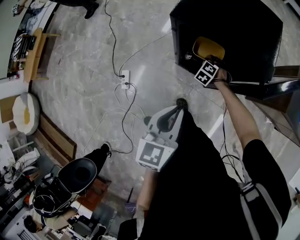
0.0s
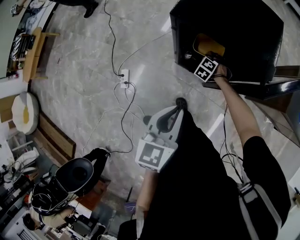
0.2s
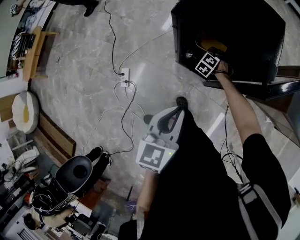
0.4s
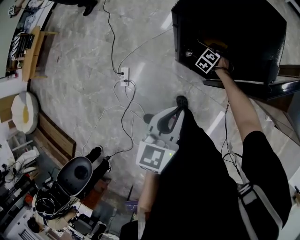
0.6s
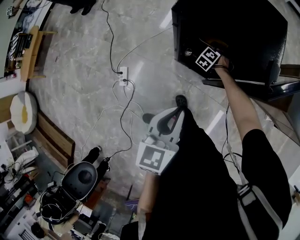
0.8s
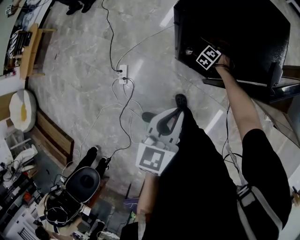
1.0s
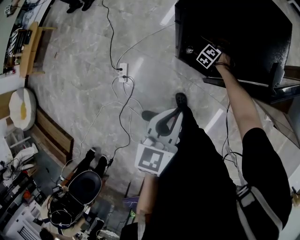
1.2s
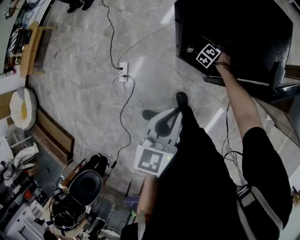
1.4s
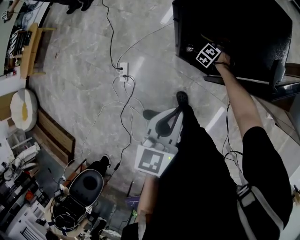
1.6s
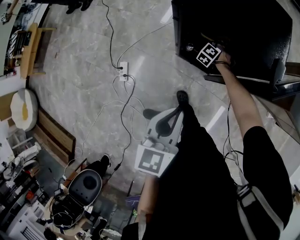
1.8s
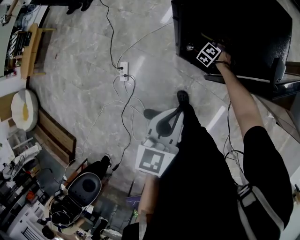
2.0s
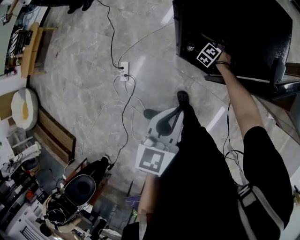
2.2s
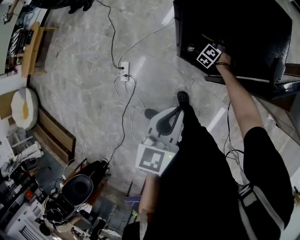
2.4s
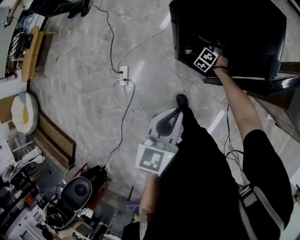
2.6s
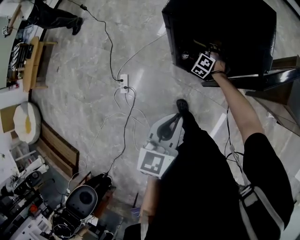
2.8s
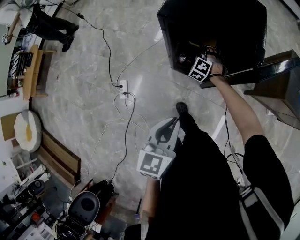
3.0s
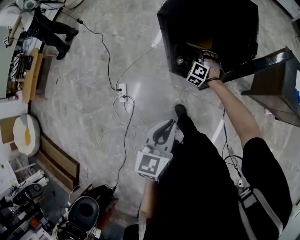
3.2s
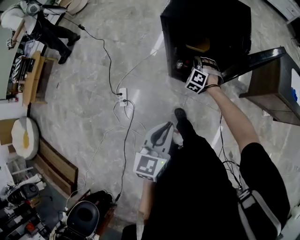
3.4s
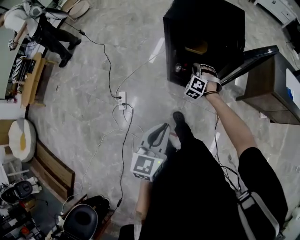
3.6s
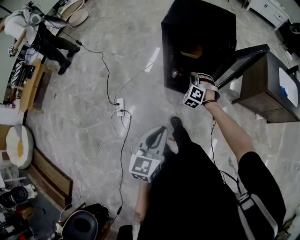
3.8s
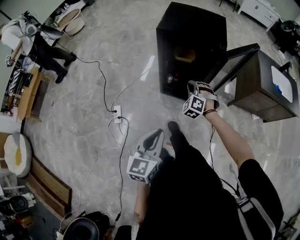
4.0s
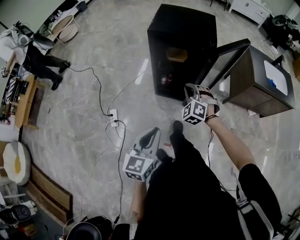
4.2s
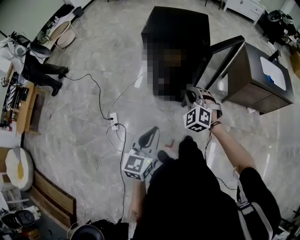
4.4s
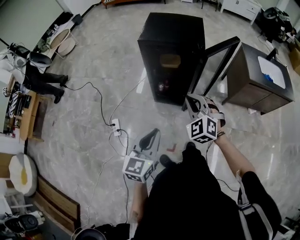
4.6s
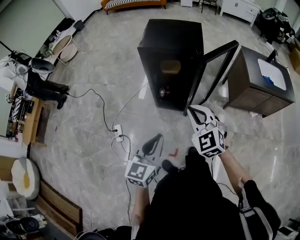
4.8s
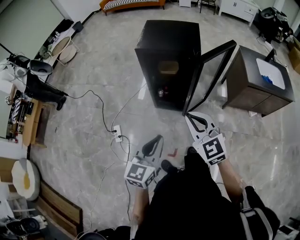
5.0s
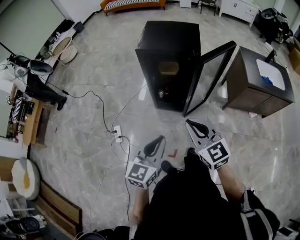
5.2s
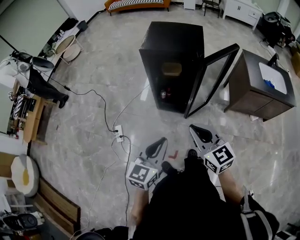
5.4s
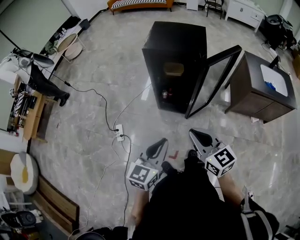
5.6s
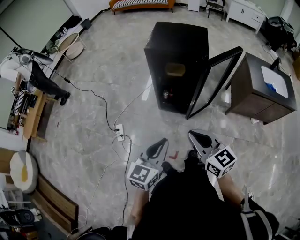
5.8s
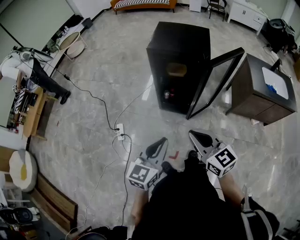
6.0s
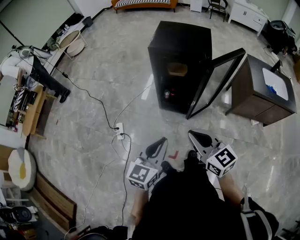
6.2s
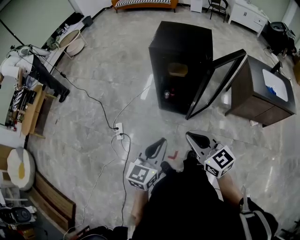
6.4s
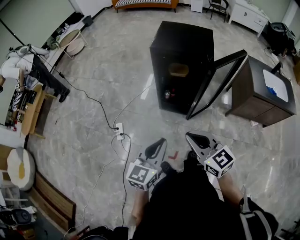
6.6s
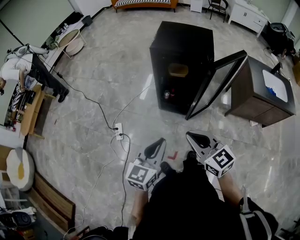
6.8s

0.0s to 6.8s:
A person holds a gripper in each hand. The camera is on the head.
0.0s to 1.4s: The right gripper is displaced forward by some 10 cm.
1.4s to 2.8s: The right gripper shifts about 5 cm upward.
2.8s to 4.0s: The right gripper goes roughly 35 cm backward and upward, and closes. The left gripper travels backward by roughly 25 cm.
4.0s to 5.4s: The left gripper is displaced to the right and upward by approximately 10 cm, while the right gripper shifts approximately 30 cm backward and upward, and twists about 60 degrees clockwise, seen from behind.
5.4s to 6.8s: The two grippers go some 5 cm to the left.

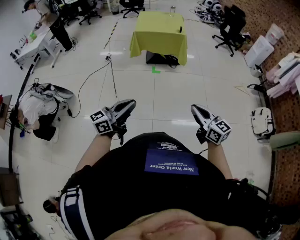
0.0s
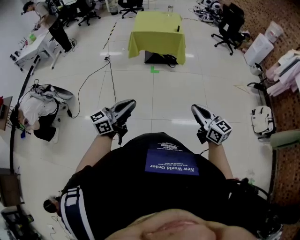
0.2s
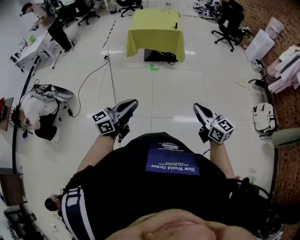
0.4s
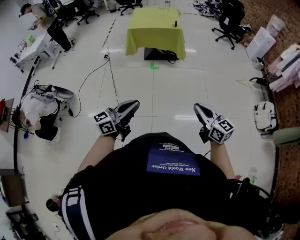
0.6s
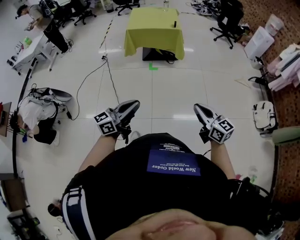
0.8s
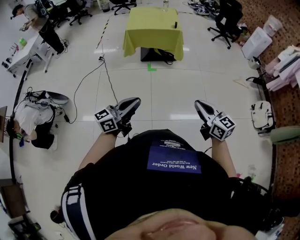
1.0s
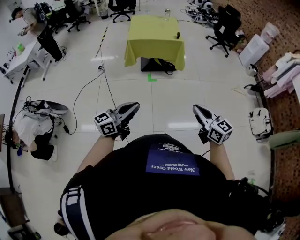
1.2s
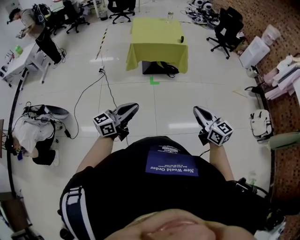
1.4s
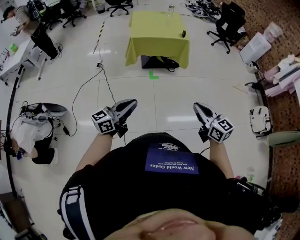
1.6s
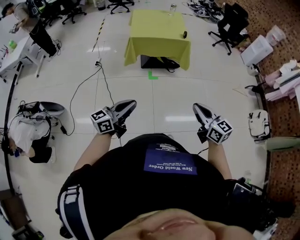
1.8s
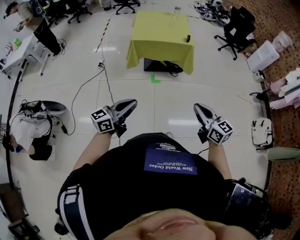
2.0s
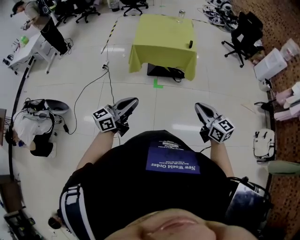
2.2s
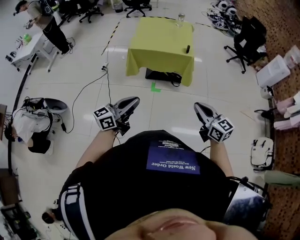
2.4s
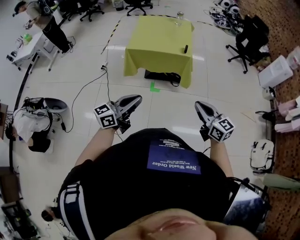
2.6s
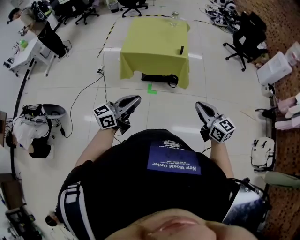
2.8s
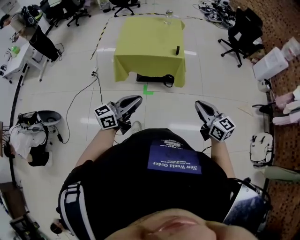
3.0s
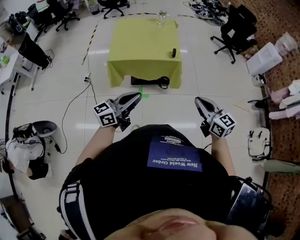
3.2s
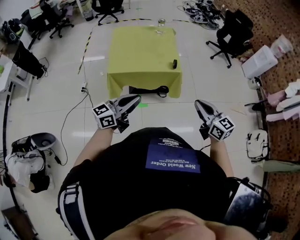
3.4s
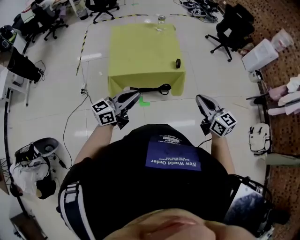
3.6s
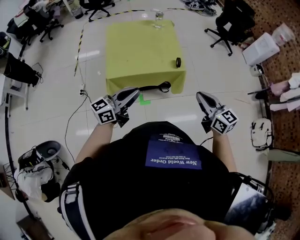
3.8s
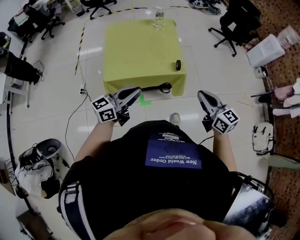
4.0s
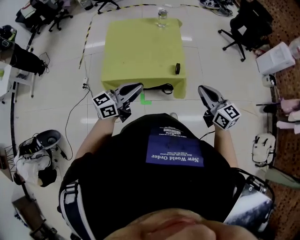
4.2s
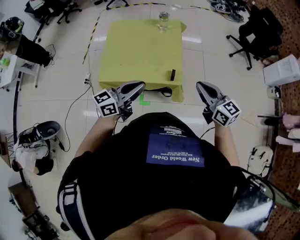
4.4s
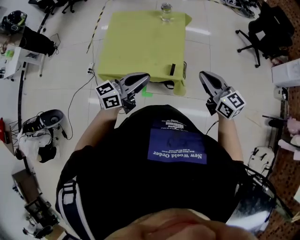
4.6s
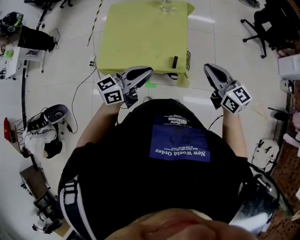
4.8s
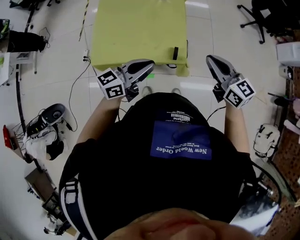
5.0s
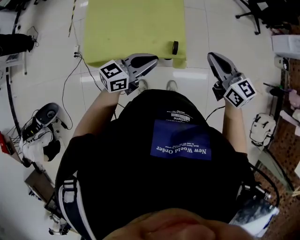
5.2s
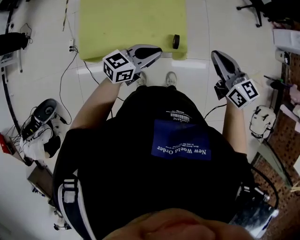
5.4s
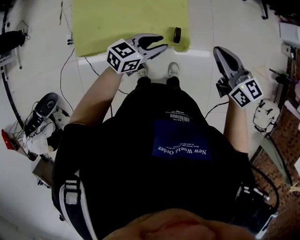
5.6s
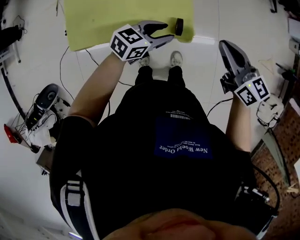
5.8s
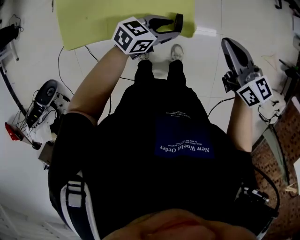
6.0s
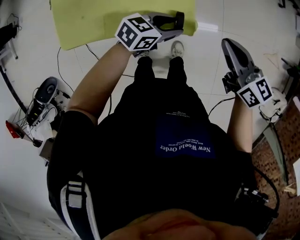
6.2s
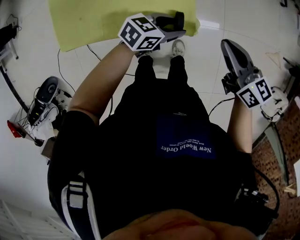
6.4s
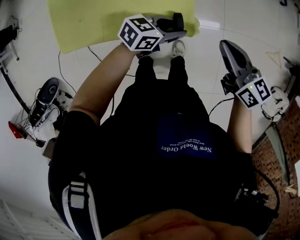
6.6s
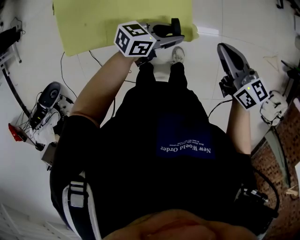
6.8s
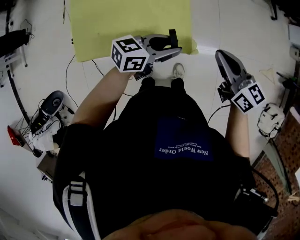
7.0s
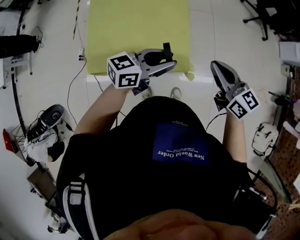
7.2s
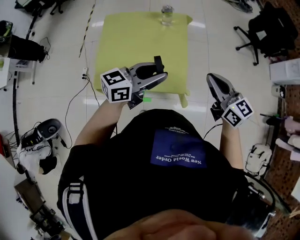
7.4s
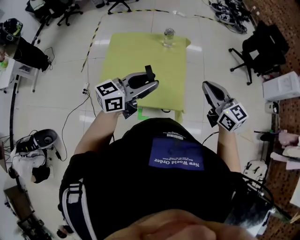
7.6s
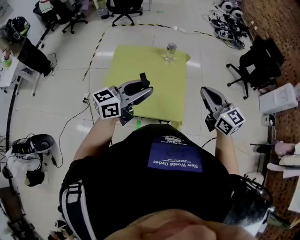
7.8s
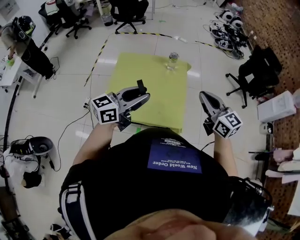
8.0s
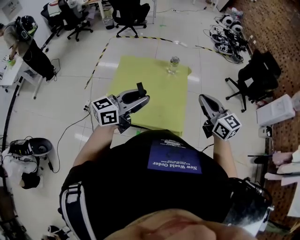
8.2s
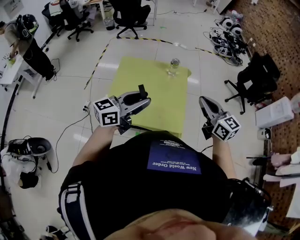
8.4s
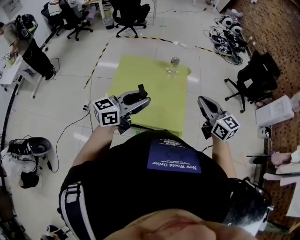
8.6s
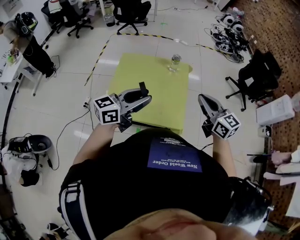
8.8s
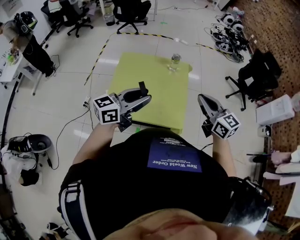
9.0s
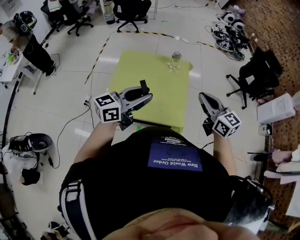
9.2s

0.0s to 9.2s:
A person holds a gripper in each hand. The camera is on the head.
0.0s to 1.6s: Both grippers travel together forward and to the left, about 25 cm.
1.6s to 3.0s: Both grippers move forward and to the right, roughly 40 cm.
3.0s to 4.6s: The two grippers travel together, forward, about 50 cm.
4.6s to 6.2s: The right gripper goes roughly 20 cm downward and forward, and rotates approximately 20 degrees. The left gripper heads downward and forward, covering about 30 cm, angles its fingers downward, by roughly 30 degrees, and opens up.
6.2s to 7.6s: The left gripper moves upward, some 35 cm, and changes its angle by about 40 degrees. The right gripper is displaced upward by some 20 cm, and changes its angle by some 30 degrees.
7.6s to 9.2s: The right gripper ends up roughly 5 cm from where it was. Meanwhile the left gripper heads to the left, covering some 5 cm.

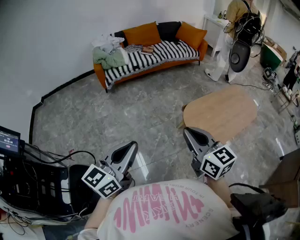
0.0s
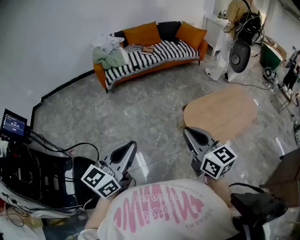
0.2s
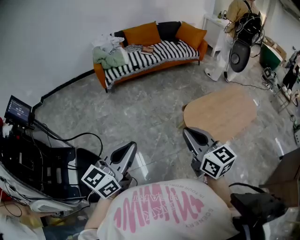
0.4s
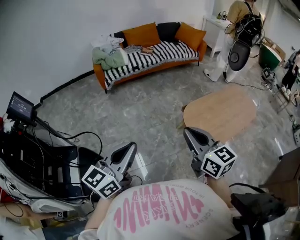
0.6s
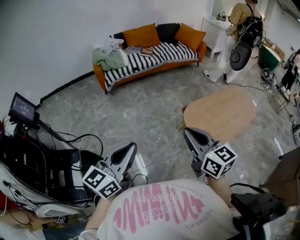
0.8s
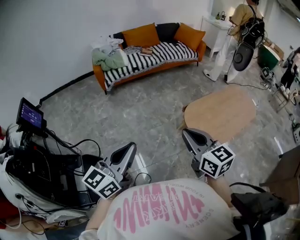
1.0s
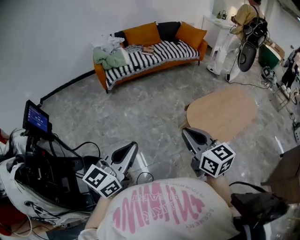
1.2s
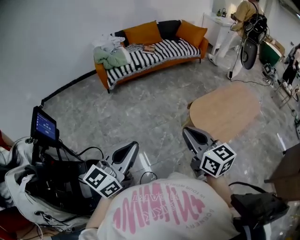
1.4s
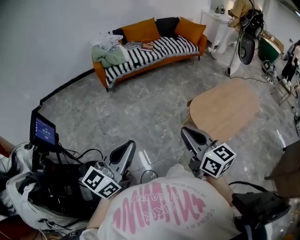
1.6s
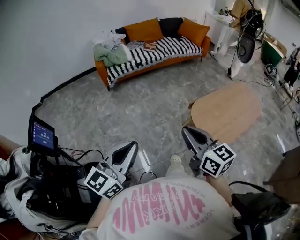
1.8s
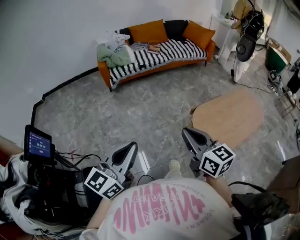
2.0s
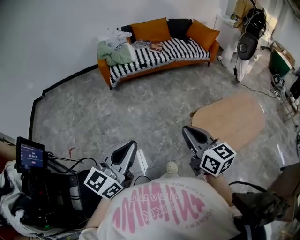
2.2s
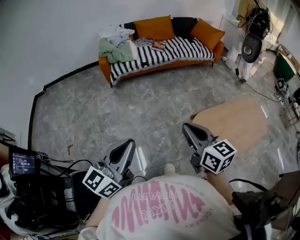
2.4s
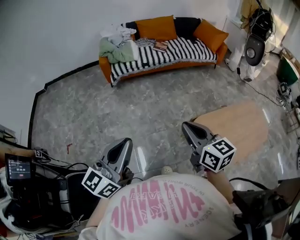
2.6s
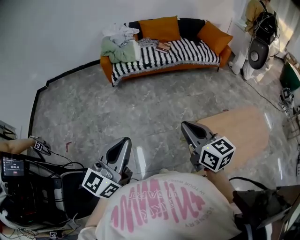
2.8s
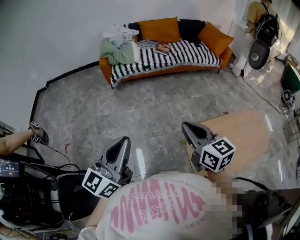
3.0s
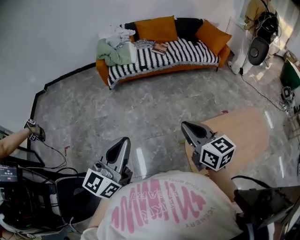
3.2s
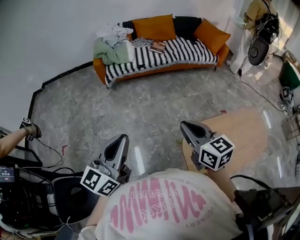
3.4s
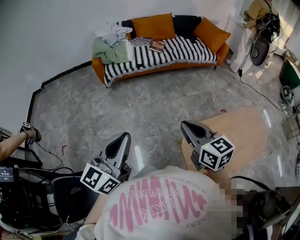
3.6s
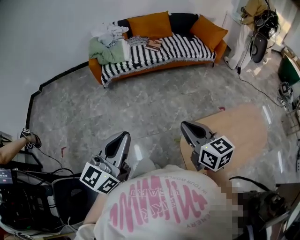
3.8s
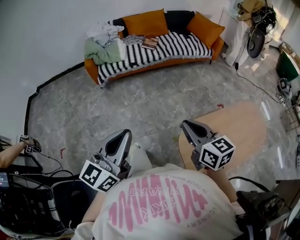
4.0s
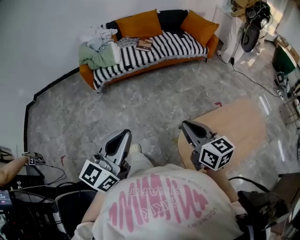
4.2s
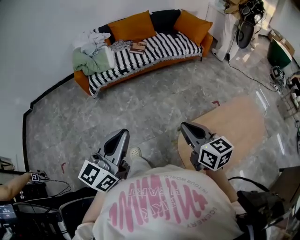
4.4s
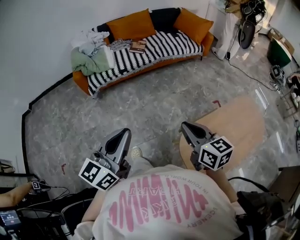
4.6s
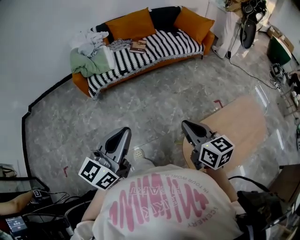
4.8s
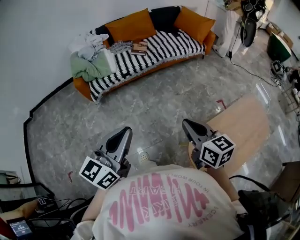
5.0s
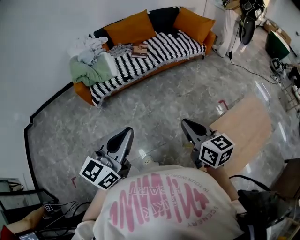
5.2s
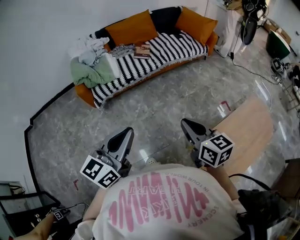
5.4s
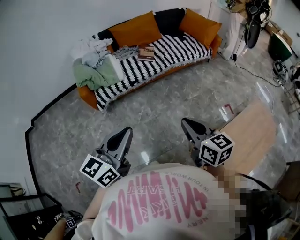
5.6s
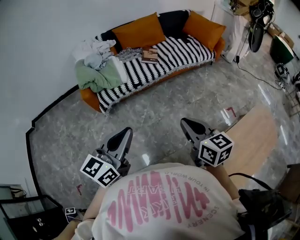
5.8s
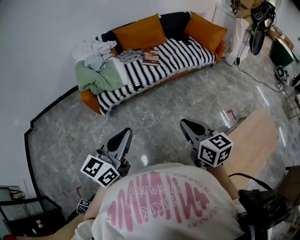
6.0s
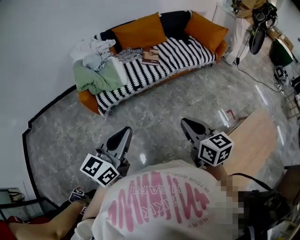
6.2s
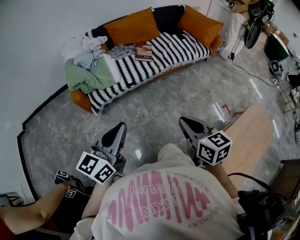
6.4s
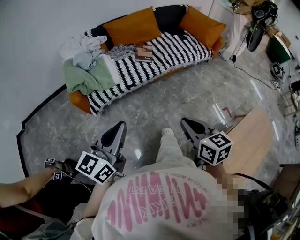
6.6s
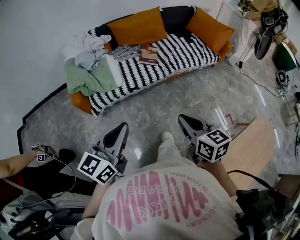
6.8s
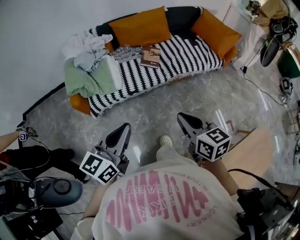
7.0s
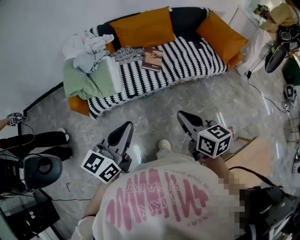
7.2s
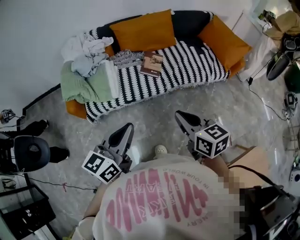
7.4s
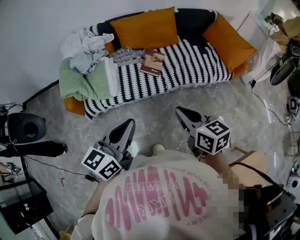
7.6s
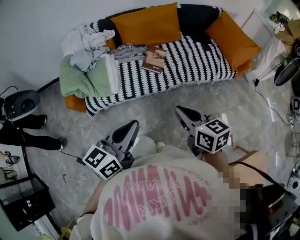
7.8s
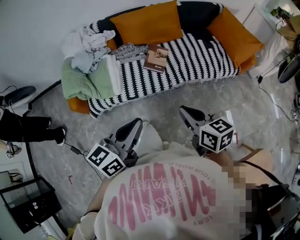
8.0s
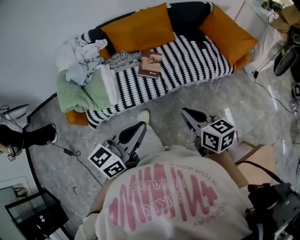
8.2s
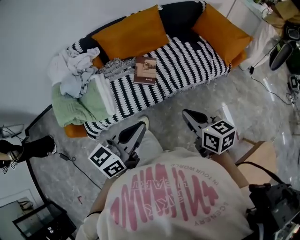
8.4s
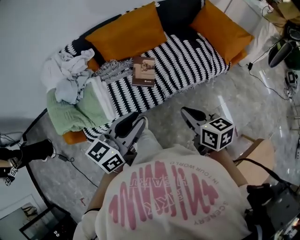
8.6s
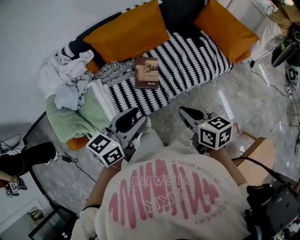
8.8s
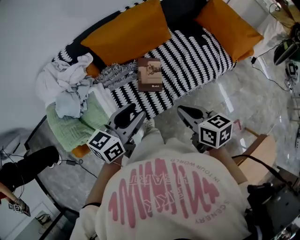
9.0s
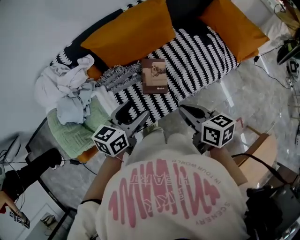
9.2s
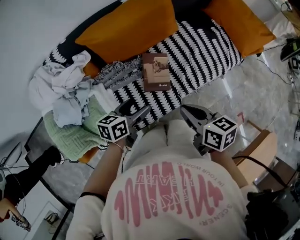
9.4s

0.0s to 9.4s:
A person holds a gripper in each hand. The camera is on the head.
0.0s to 1.6s: The two grippers go some 10 cm to the left.
1.6s to 3.2s: The grippers both shift forward and to the right by about 25 cm.
3.2s to 4.8s: The right gripper goes roughly 10 cm forward and to the right. The left gripper heads forward, covering roughly 15 cm.
4.8s to 6.2s: The two grippers go roughly 25 cm forward and to the left.
6.2s to 7.8s: The right gripper is displaced forward by about 30 cm; the left gripper moves forward and to the right, approximately 30 cm.
7.8s to 9.4s: The right gripper shifts some 25 cm forward, and turns by approximately 30 degrees. The left gripper travels forward and downward by about 40 cm, changes its angle by roughly 40 degrees, and opens its fingers.
